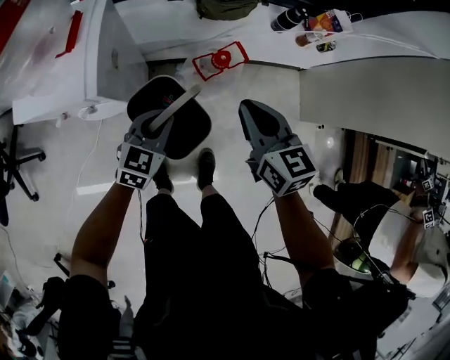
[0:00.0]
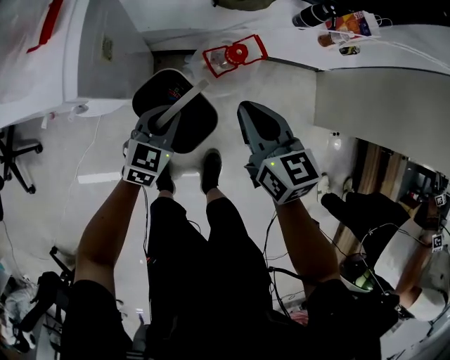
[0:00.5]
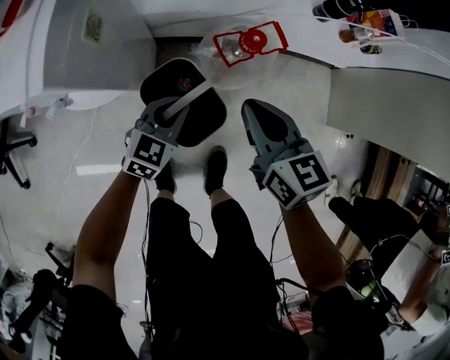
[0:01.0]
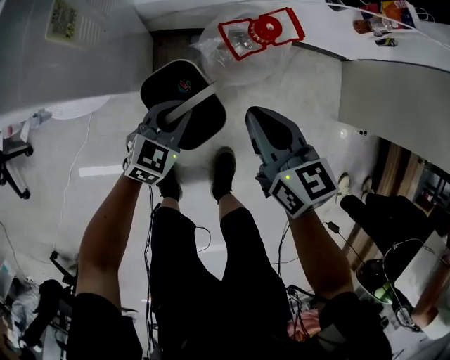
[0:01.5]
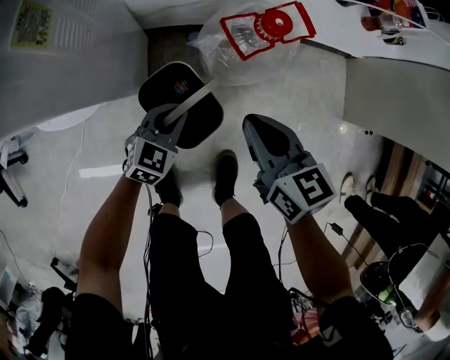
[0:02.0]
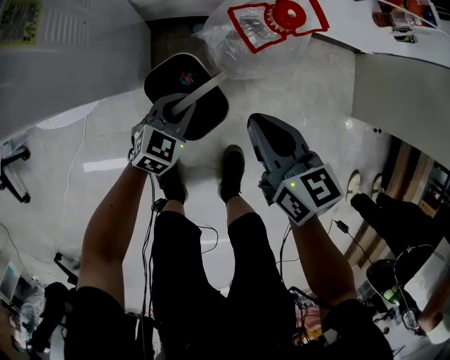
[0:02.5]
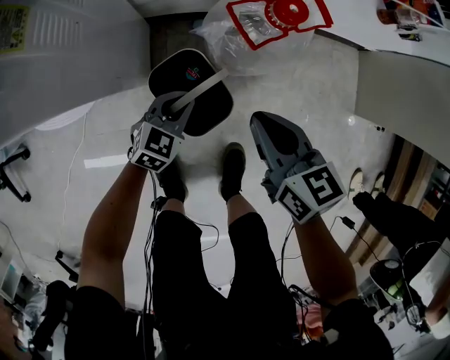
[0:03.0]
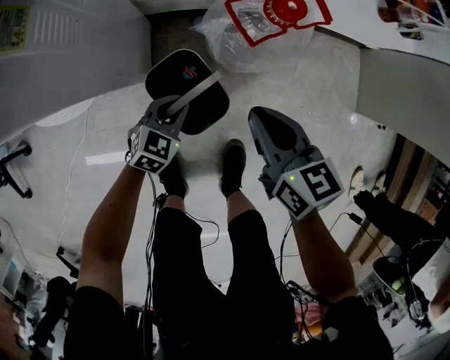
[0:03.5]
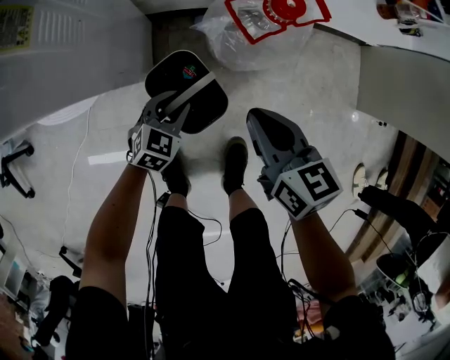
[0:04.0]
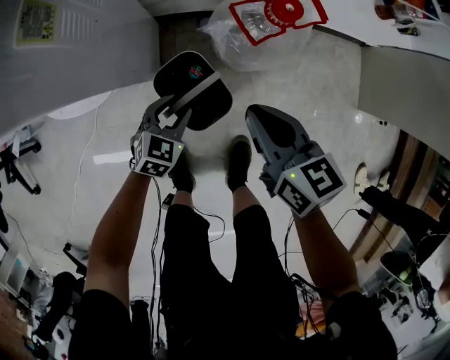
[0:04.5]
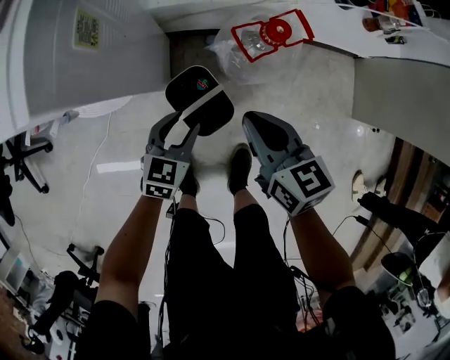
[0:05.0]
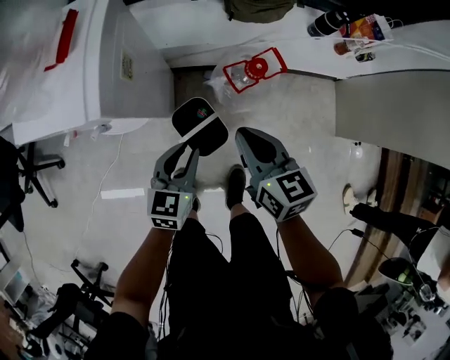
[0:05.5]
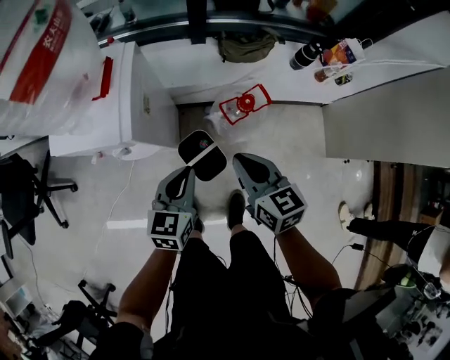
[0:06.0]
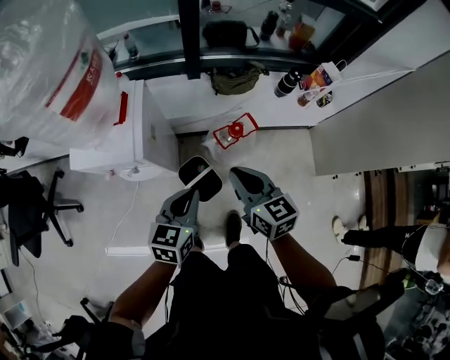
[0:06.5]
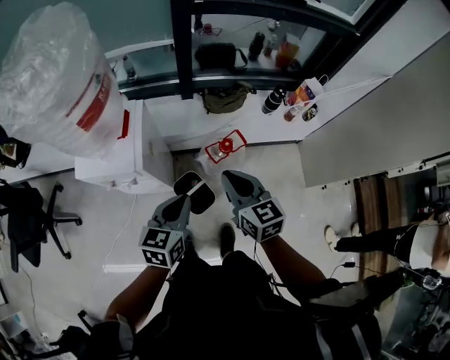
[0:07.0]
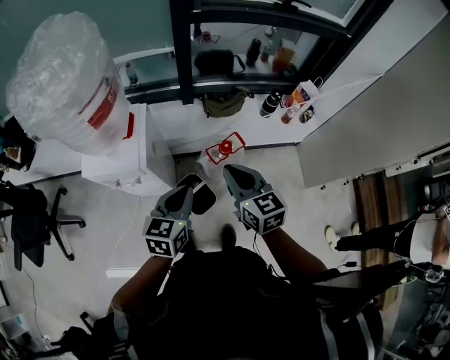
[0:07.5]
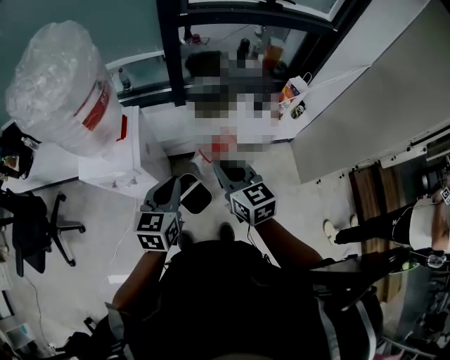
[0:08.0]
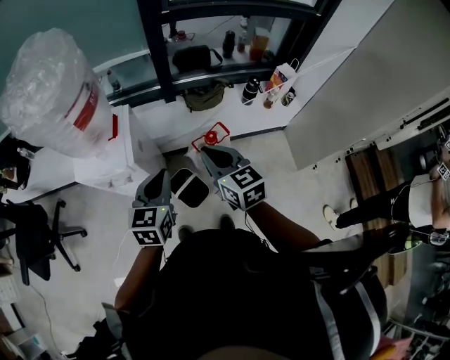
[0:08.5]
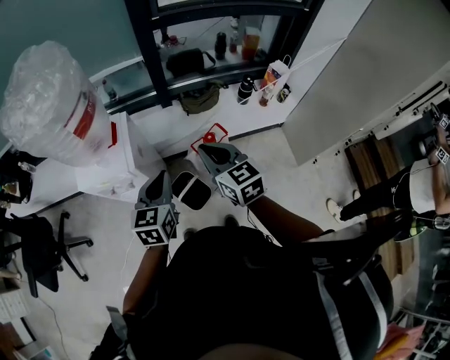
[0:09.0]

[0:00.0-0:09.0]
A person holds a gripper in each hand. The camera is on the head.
0:00.0 to 0:02.0: Both grippers travel together downward, approximately 35 cm.
0:02.0 to 0:04.5: The left gripper opens up.
0:04.5 to 0:07.0: Both grippers travel together upward, some 50 cm. The left gripper rotates some 30 degrees, and closes up.
0:07.0 to 0:09.0: The two grippers go some 5 cm upward.

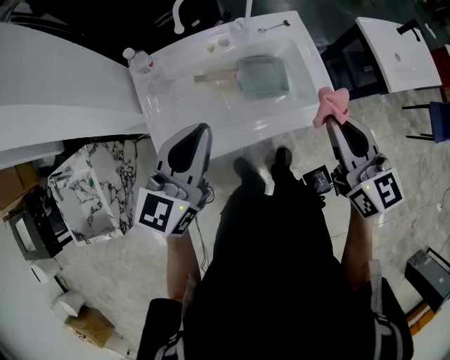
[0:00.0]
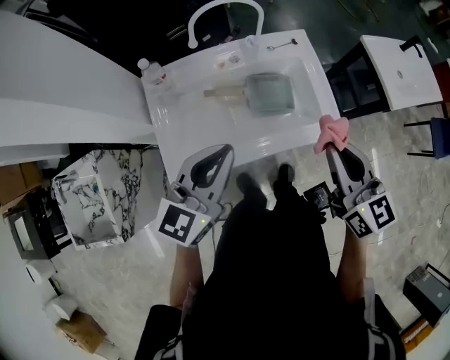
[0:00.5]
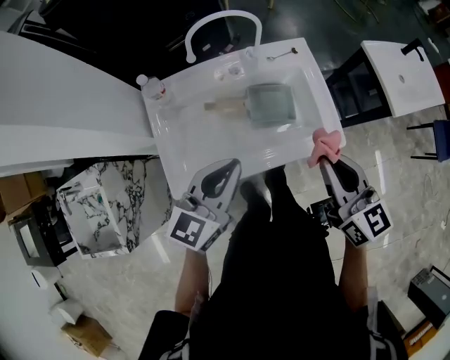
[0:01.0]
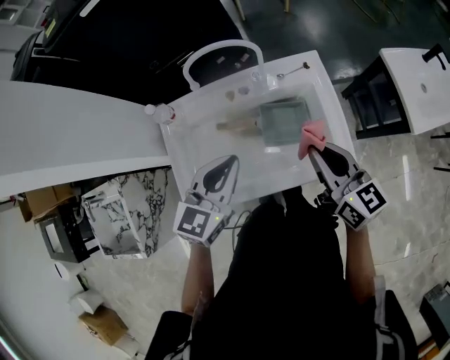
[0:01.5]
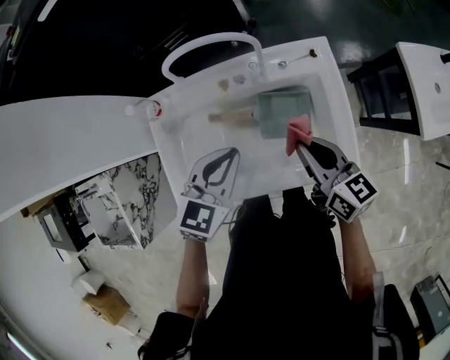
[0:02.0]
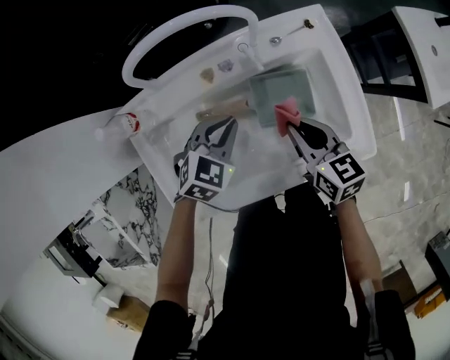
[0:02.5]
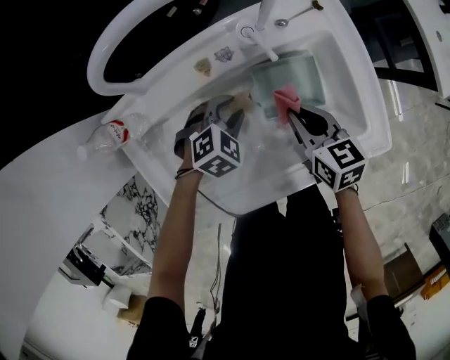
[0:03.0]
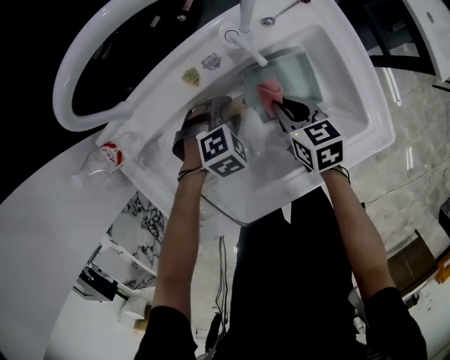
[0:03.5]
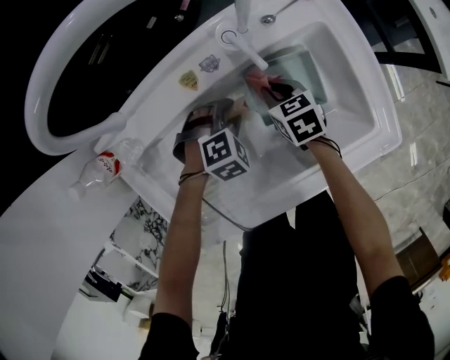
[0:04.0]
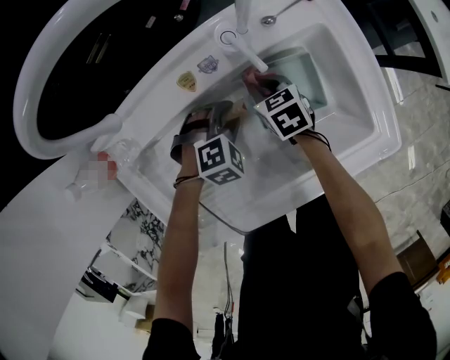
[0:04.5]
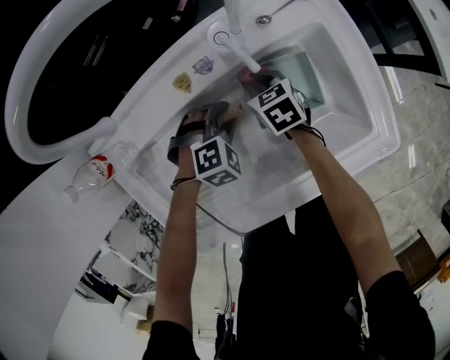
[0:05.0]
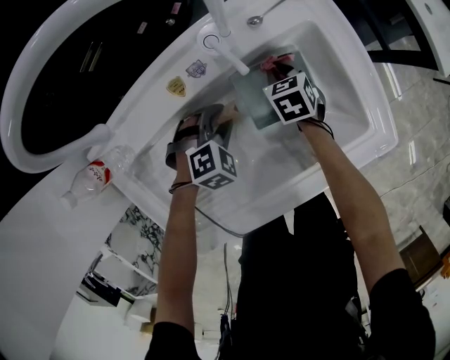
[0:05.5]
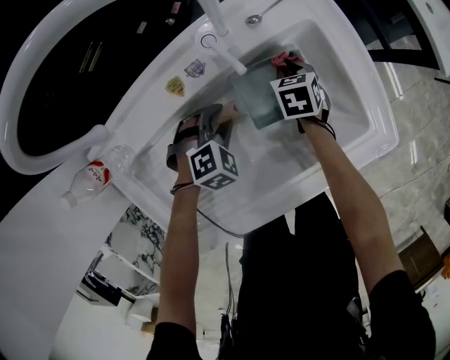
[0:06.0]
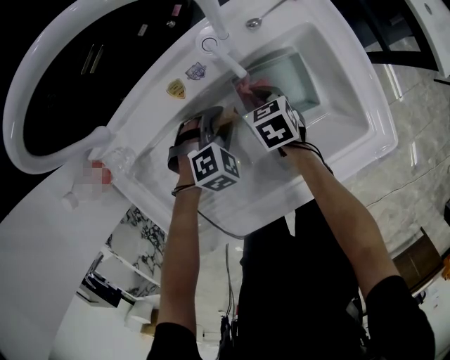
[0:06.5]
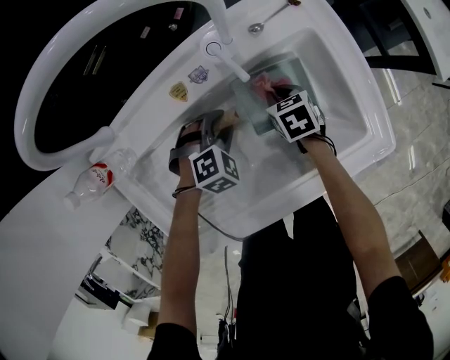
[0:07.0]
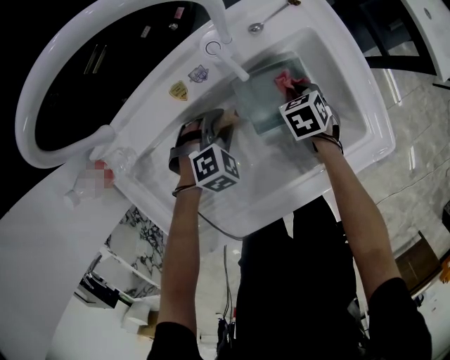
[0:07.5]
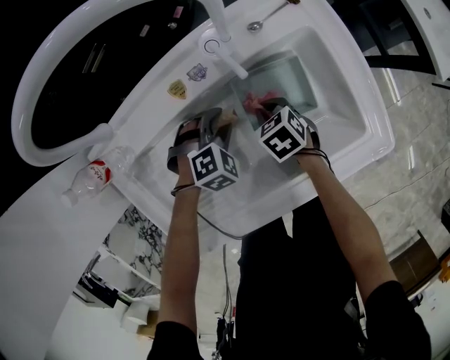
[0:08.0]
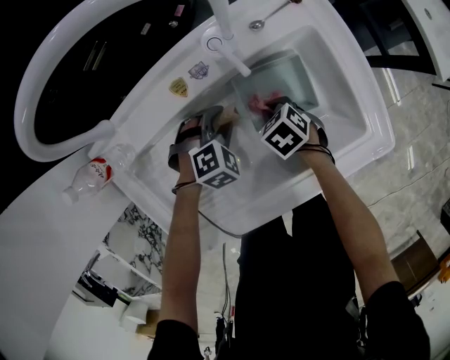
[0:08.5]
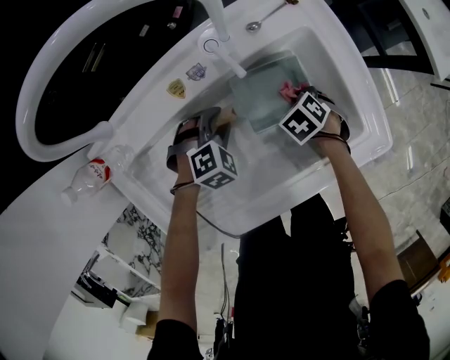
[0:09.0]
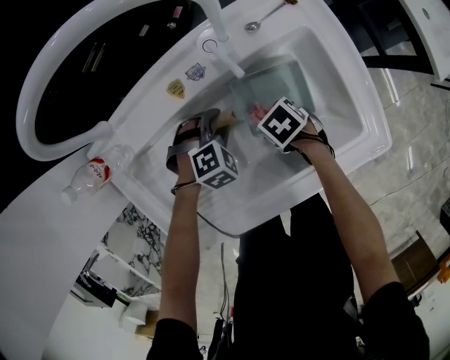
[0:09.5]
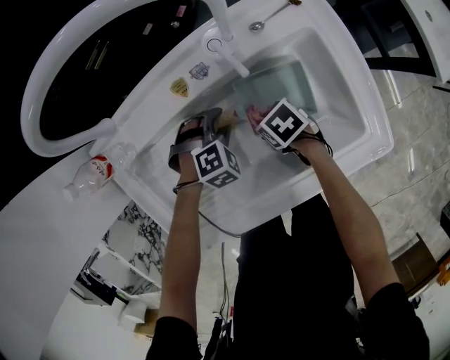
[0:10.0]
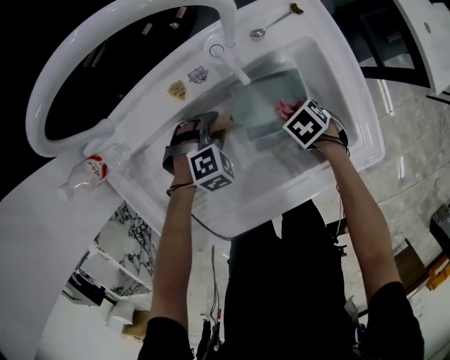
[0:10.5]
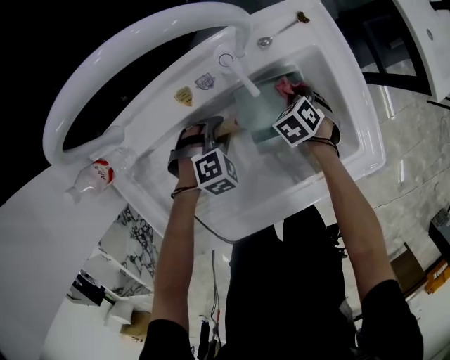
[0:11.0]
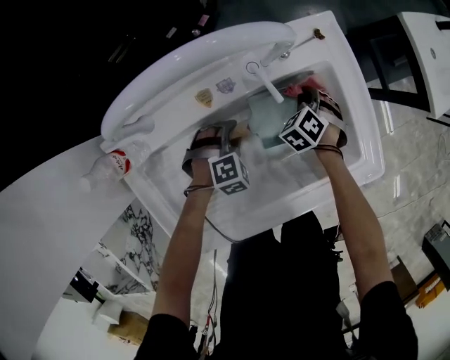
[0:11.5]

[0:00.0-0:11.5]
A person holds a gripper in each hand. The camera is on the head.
0:00.0 to 0:02.0: The left gripper goes approximately 20 cm forward, downward and to the right, and swivels roughly 30 degrees. Meanwhile the right gripper shifts about 20 cm forward and downward, and turns by some 30 degrees.
0:02.0 to 0:04.0: Both grippers move downward, approximately 35 cm. The right gripper points its fingers about 40 degrees further downward; the left gripper angles its fingers downward, by about 40 degrees, and opens its fingers.
0:04.0 to 0:06.0: The right gripper shifts roughly 10 cm to the right and forward, and rotates roughly 20 degrees.
0:06.0 to 0:07.5: The right gripper moves approximately 10 cm to the left and comes back.
0:07.5 to 0:09.5: The right gripper shifts by roughly 10 cm, and changes its angle by roughly 30 degrees.
0:09.5 to 0:11.5: The right gripper shifts by about 15 cm, and changes its angle by about 50 degrees.

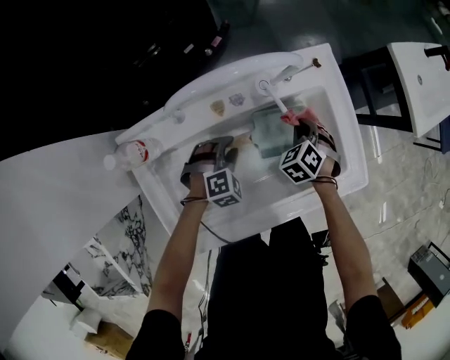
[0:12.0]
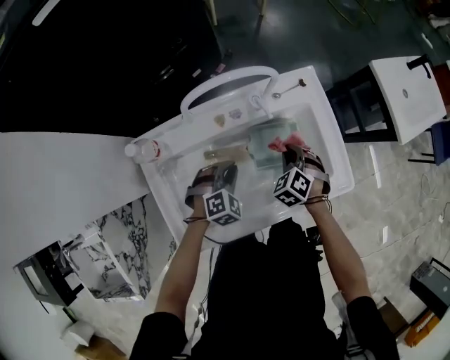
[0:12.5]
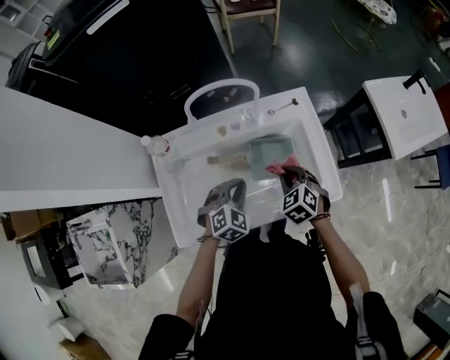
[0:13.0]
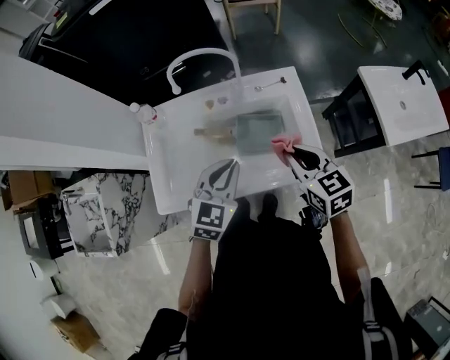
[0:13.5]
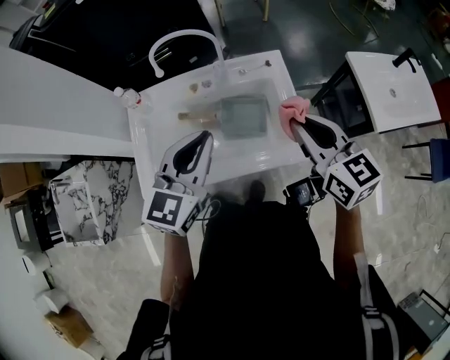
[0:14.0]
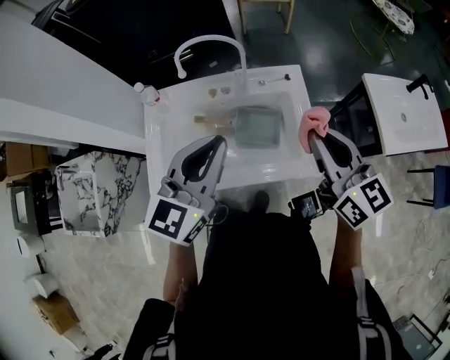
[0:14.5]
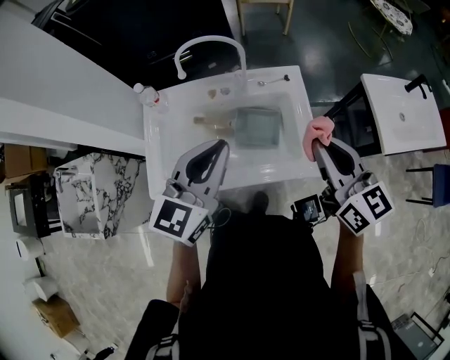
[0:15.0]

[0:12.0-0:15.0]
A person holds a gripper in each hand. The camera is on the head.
0:12.0 to 0:13.5: The grippers both shift upward by roughly 30 cm. The right gripper points its fingers roughly 30 degrees further upward; the left gripper angles its fingers upward, by some 30 degrees, and closes up.
0:13.5 to 0:15.0: The two grippers go some 15 cm upward. The left gripper changes its angle by approximately 20 degrees. The right gripper turns by about 20 degrees.

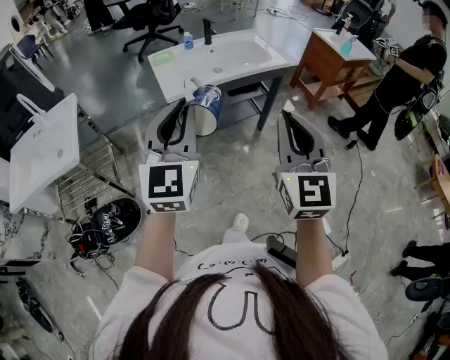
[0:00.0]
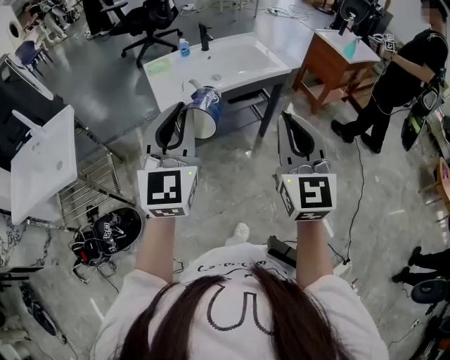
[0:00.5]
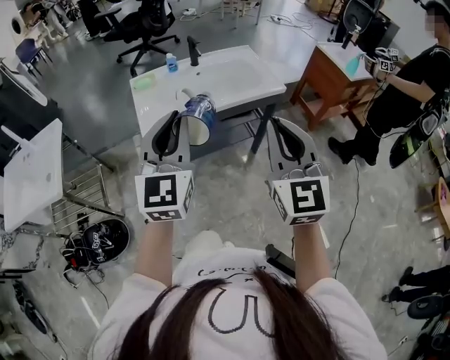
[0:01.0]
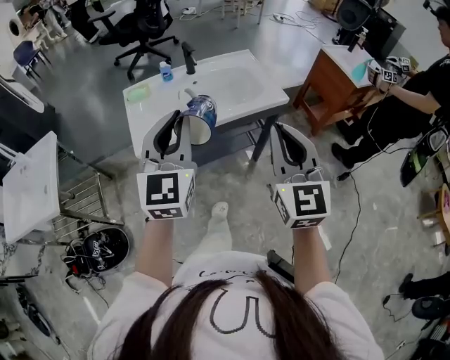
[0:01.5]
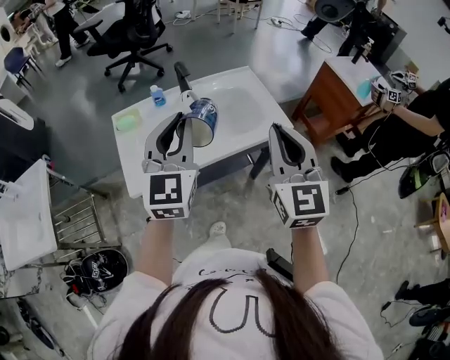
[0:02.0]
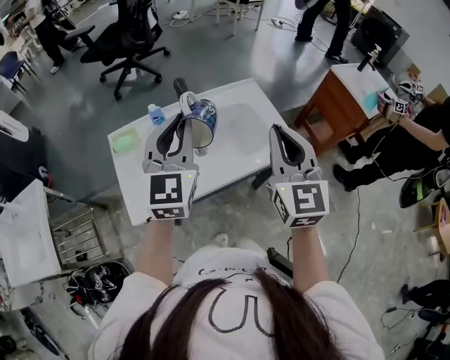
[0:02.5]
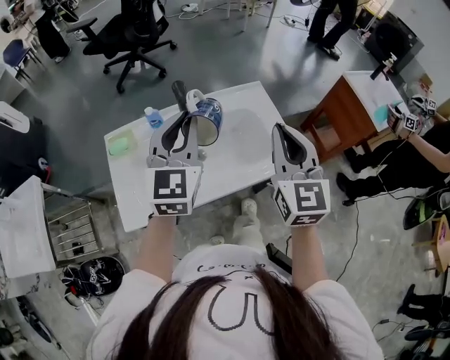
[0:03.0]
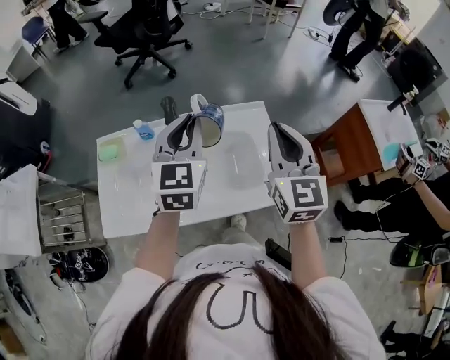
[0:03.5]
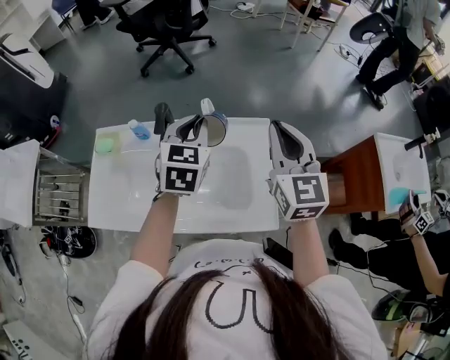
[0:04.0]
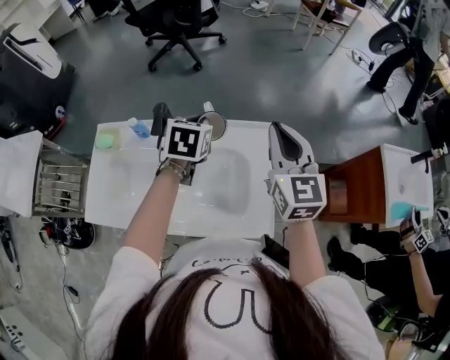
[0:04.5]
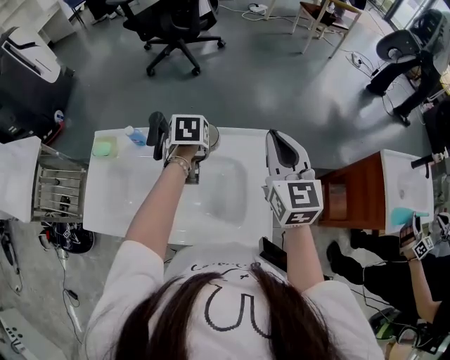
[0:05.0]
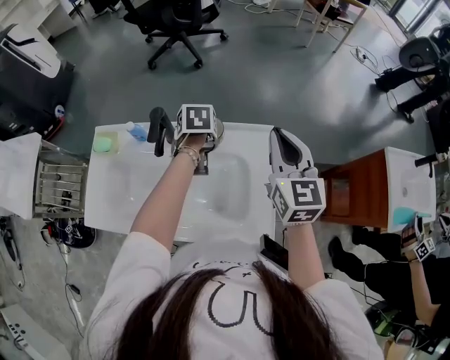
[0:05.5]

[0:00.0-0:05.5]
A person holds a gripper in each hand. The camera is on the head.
0:00.0 to 0:02.0: The pair of grippers is taken forward, roughly 40 cm.
0:02.0 to 0:03.5: The two grippers go roughly 30 cm forward.
0:03.5 to 0:05.5: The left gripper travels downward and forward by roughly 25 cm, and tips its fingers downward by about 60 degrees. Meanwhile the right gripper goes about 15 cm forward, downward and to the right.
